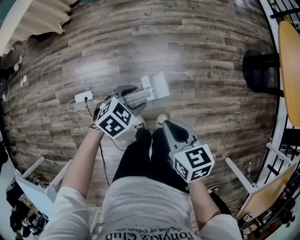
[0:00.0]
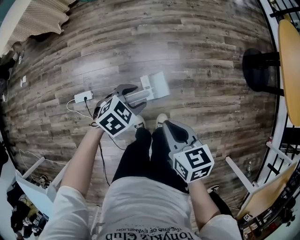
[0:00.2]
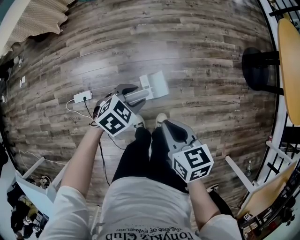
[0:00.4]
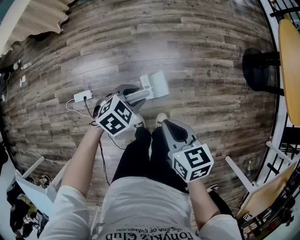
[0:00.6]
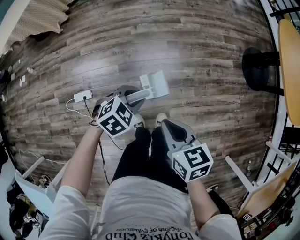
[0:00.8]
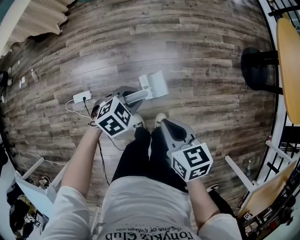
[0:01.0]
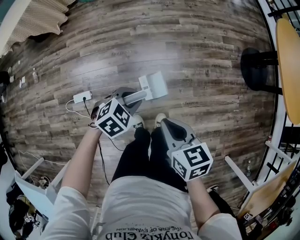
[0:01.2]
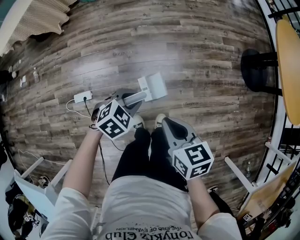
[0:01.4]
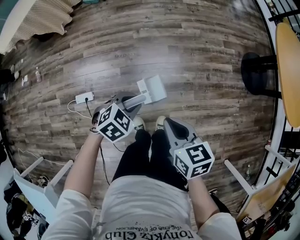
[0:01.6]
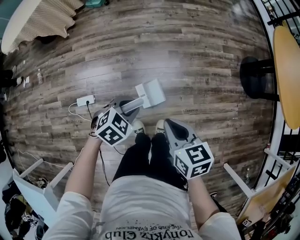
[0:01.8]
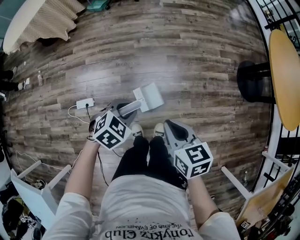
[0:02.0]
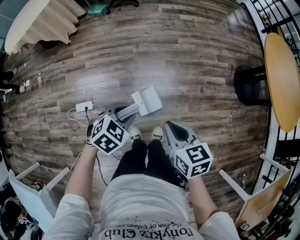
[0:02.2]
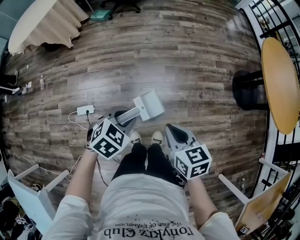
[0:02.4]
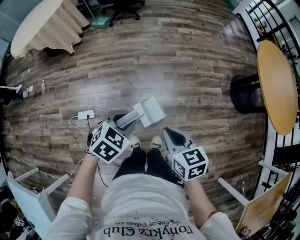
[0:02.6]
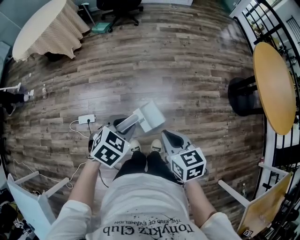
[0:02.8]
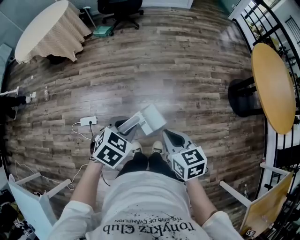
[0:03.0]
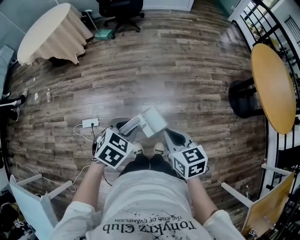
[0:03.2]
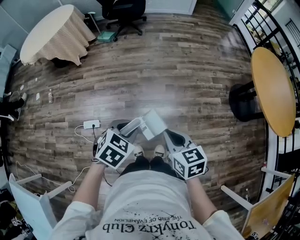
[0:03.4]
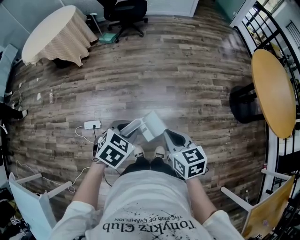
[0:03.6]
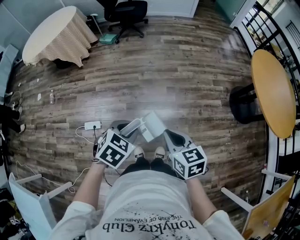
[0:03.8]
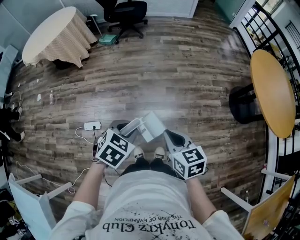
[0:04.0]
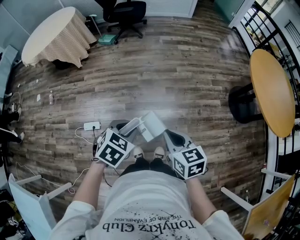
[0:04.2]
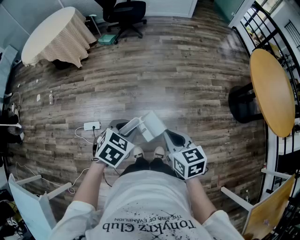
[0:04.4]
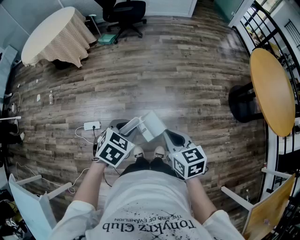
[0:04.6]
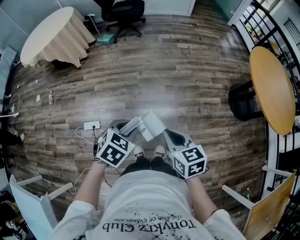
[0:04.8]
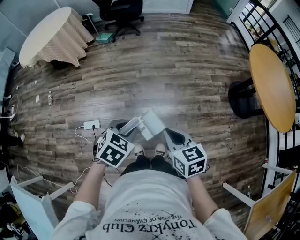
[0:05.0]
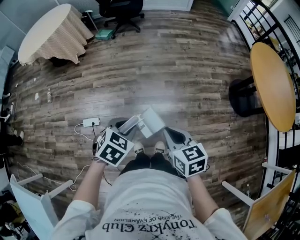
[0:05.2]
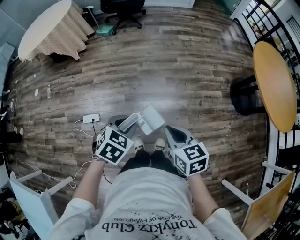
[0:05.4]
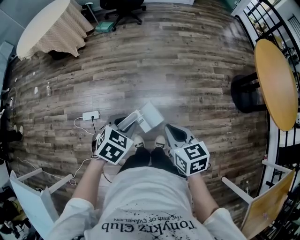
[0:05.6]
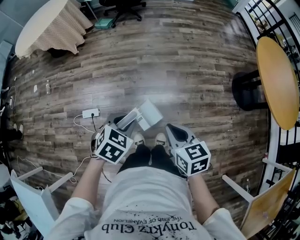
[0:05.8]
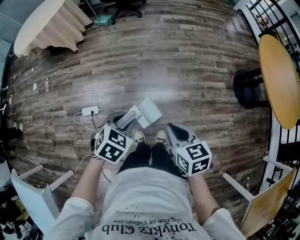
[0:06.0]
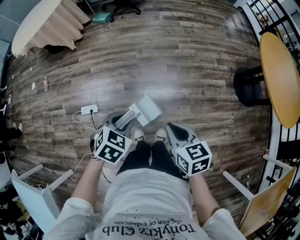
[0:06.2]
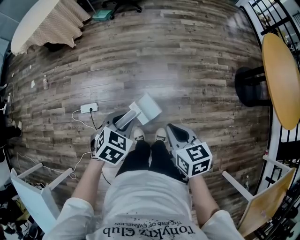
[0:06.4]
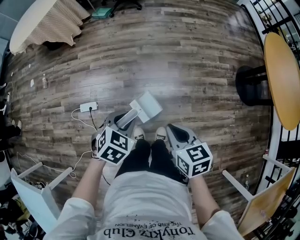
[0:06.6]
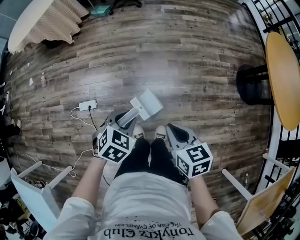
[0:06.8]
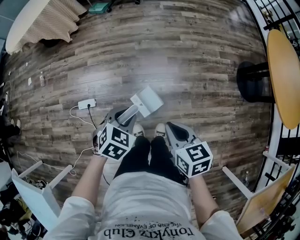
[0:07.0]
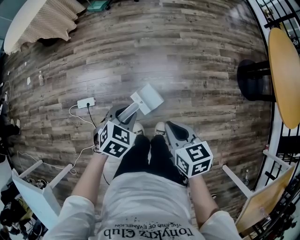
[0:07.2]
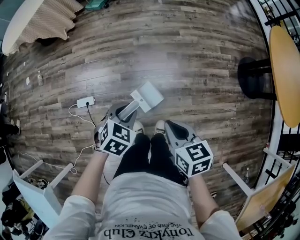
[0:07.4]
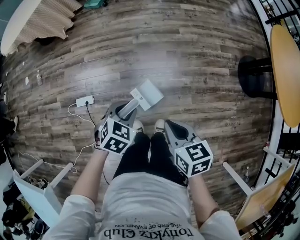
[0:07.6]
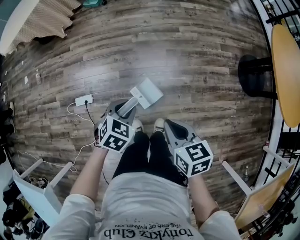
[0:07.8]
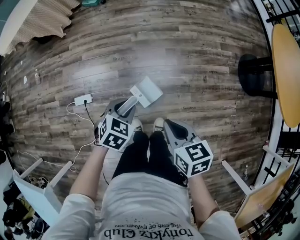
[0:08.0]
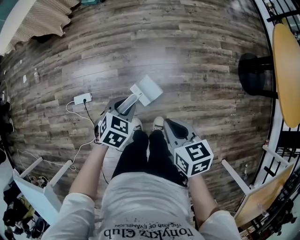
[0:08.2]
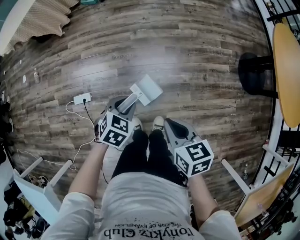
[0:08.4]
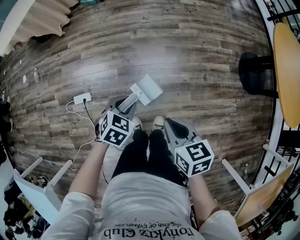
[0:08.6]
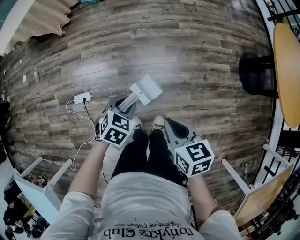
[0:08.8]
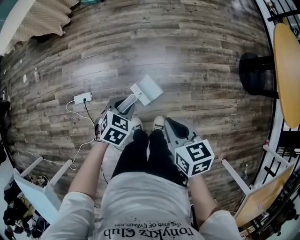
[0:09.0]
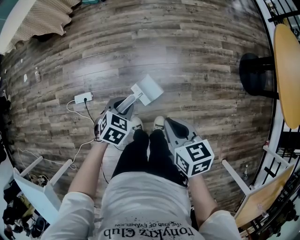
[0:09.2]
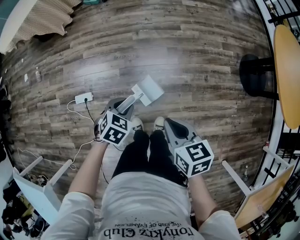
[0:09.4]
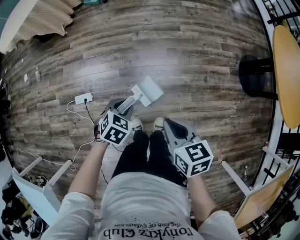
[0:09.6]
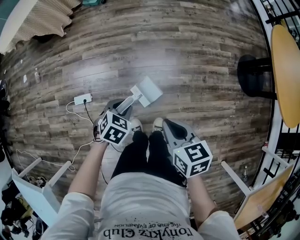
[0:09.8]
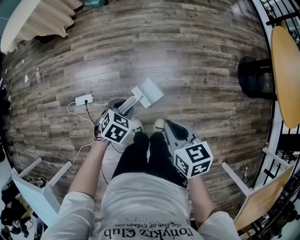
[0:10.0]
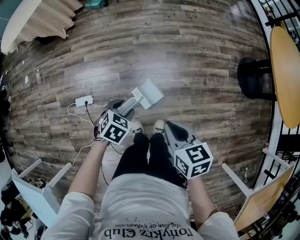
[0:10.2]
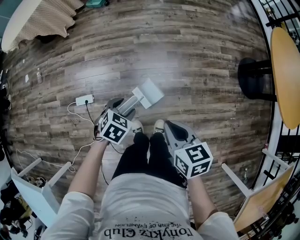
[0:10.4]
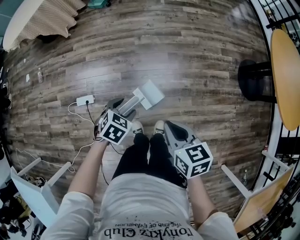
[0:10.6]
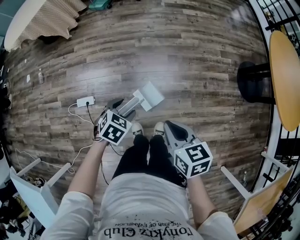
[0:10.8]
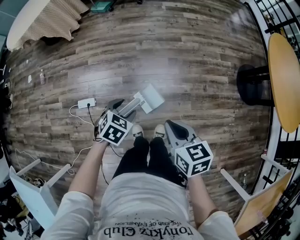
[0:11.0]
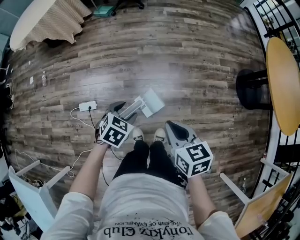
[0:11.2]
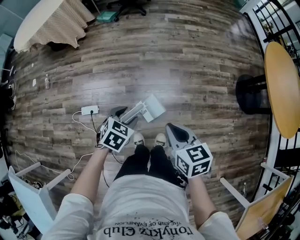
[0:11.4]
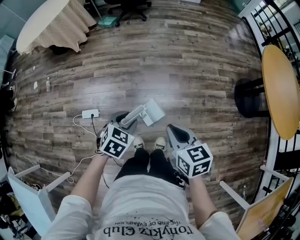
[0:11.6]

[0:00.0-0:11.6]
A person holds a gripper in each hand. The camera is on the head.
0:00.0 to 0:01.4: The left gripper closes up.
0:01.4 to 0:02.8: The left gripper travels upward by approximately 15 cm, while the right gripper shifts roughly 10 cm upward.
0:02.8 to 0:05.8: There are only small adjustments of the grippers.
0:05.8 to 0:07.2: The right gripper heads downward, covering about 5 cm. Meanwhile the left gripper travels downward and forward by some 10 cm.
0:07.2 to 0:08.8: The left gripper is displaced downward by about 5 cm.
0:08.8 to 0:10.2: The left gripper opens its fingers.
0:10.2 to 0:11.6: The left gripper is displaced upward by roughly 10 cm; the right gripper goes roughly 5 cm upward.

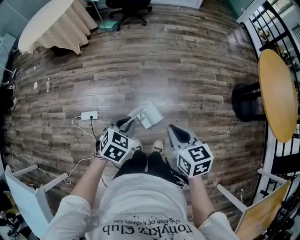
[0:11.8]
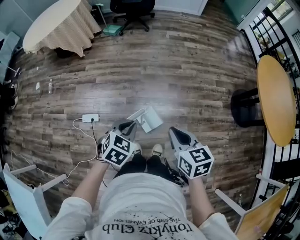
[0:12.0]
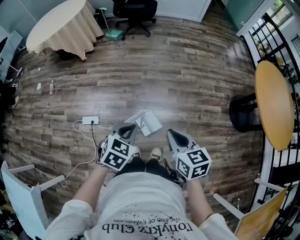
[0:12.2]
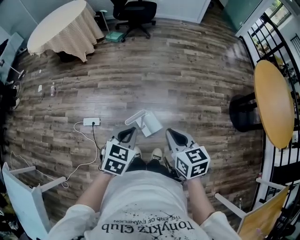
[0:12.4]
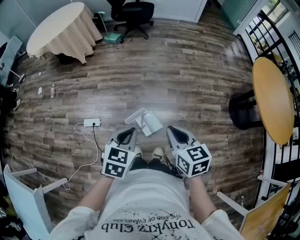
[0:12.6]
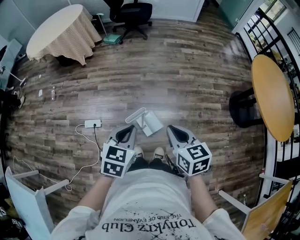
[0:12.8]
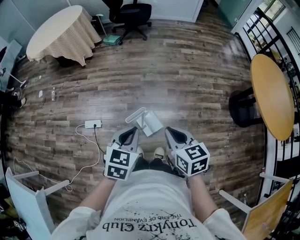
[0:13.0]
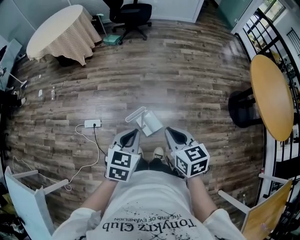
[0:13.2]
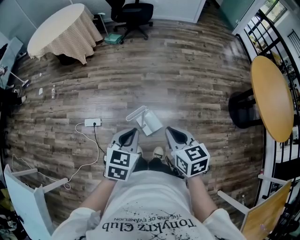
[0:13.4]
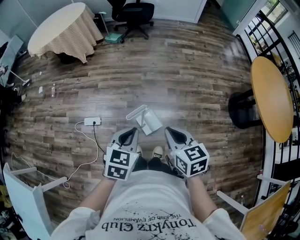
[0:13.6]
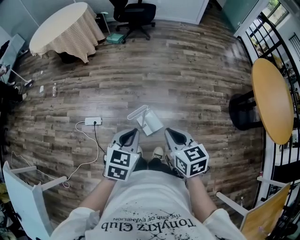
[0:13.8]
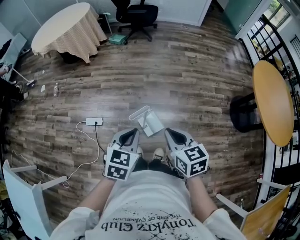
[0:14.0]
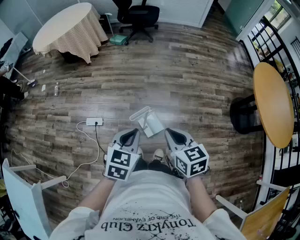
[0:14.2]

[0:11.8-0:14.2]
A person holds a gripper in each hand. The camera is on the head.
0:11.8 to 0:13.0: The left gripper goes roughly 15 cm upward and backward, and swivels about 20 degrees, while the right gripper changes place by approximately 5 cm.
0:13.0 to 0:14.2: There are only small adjustments of the grippers.

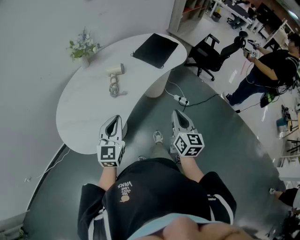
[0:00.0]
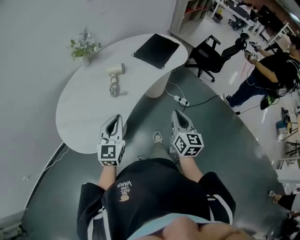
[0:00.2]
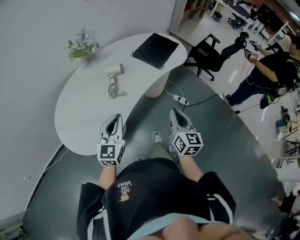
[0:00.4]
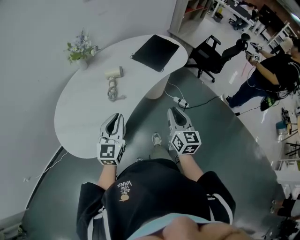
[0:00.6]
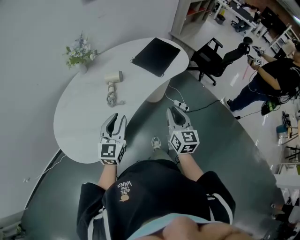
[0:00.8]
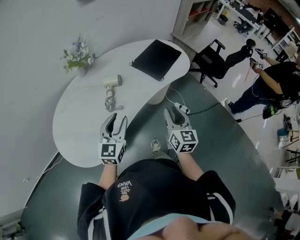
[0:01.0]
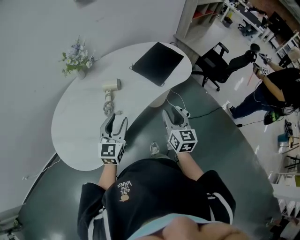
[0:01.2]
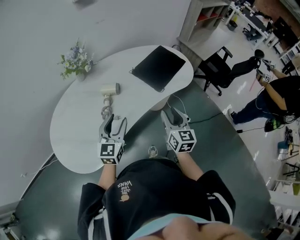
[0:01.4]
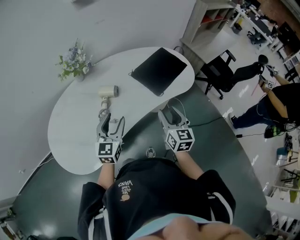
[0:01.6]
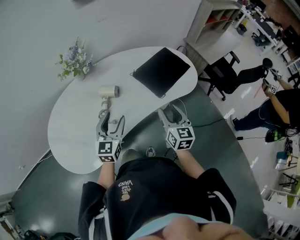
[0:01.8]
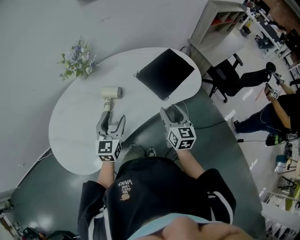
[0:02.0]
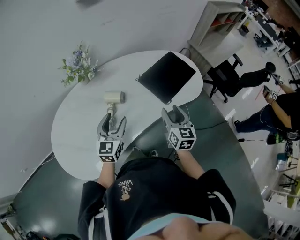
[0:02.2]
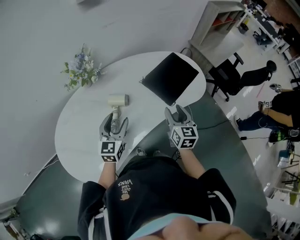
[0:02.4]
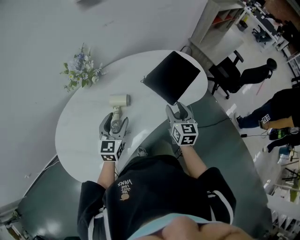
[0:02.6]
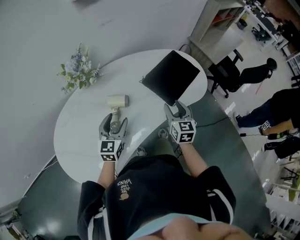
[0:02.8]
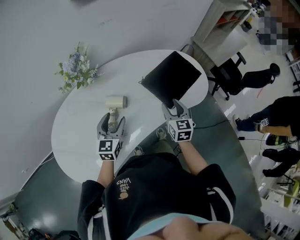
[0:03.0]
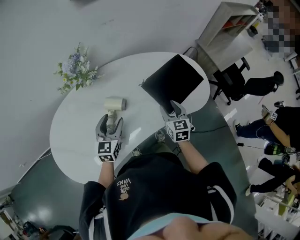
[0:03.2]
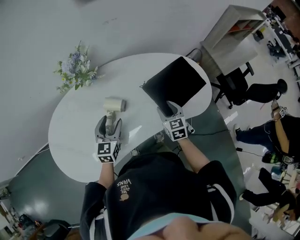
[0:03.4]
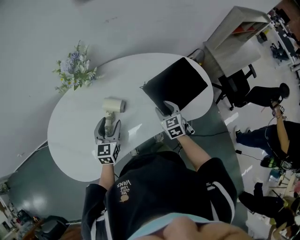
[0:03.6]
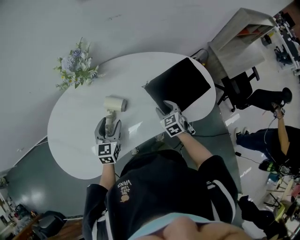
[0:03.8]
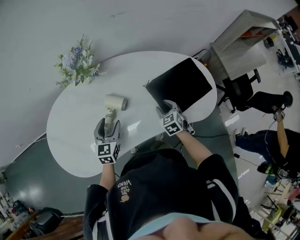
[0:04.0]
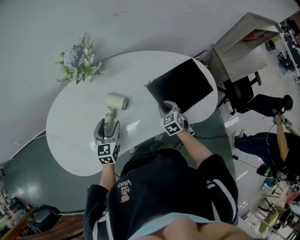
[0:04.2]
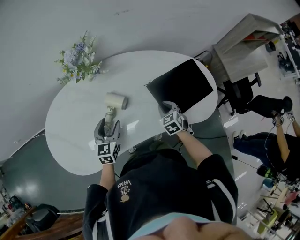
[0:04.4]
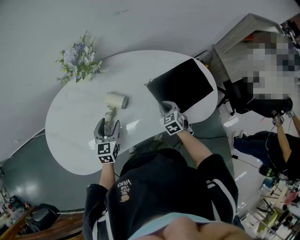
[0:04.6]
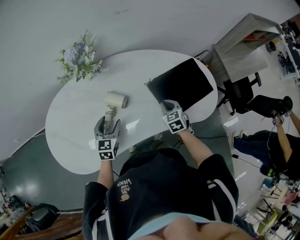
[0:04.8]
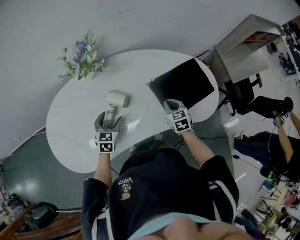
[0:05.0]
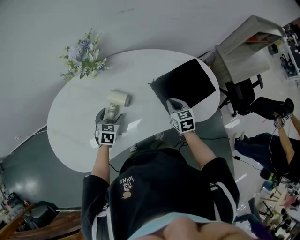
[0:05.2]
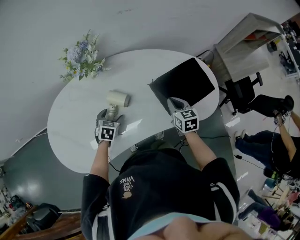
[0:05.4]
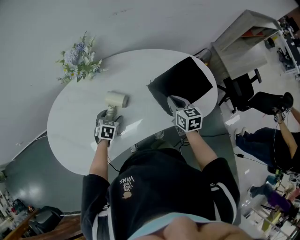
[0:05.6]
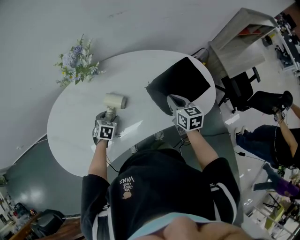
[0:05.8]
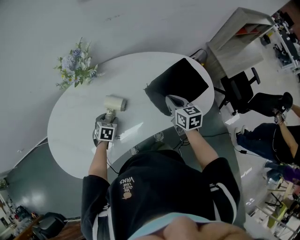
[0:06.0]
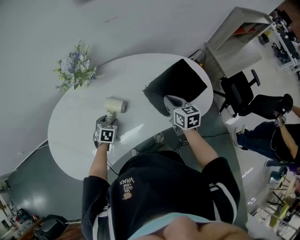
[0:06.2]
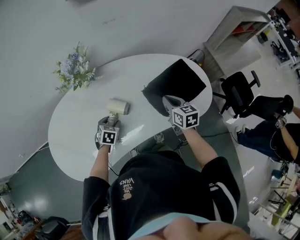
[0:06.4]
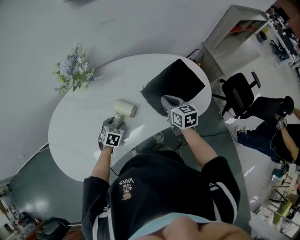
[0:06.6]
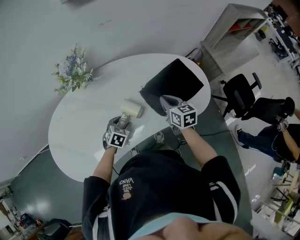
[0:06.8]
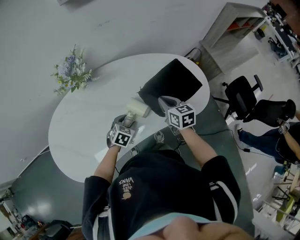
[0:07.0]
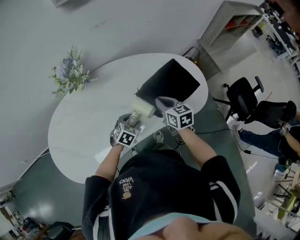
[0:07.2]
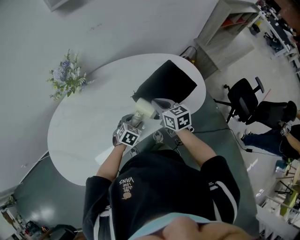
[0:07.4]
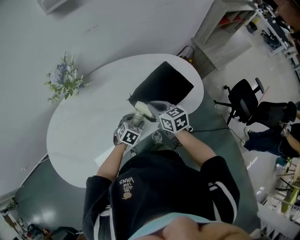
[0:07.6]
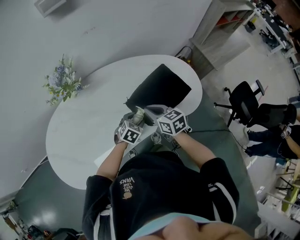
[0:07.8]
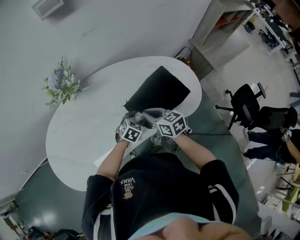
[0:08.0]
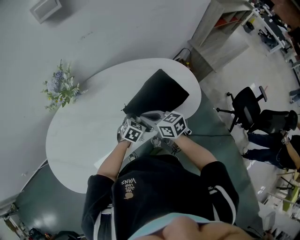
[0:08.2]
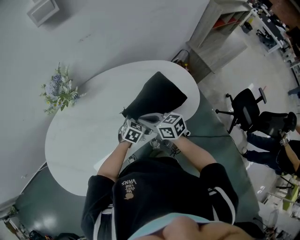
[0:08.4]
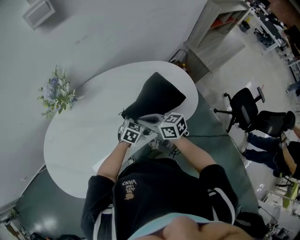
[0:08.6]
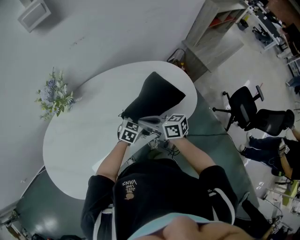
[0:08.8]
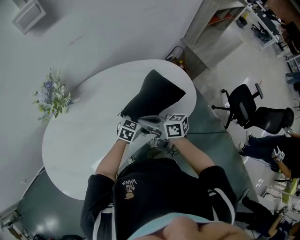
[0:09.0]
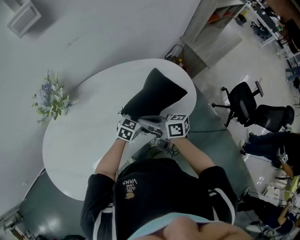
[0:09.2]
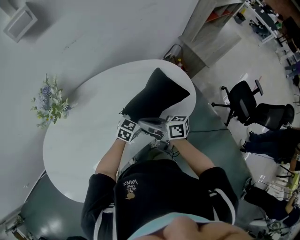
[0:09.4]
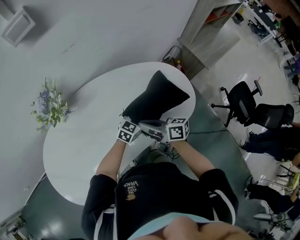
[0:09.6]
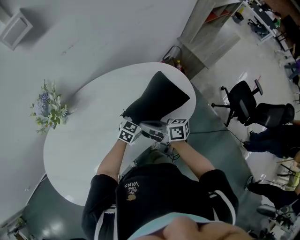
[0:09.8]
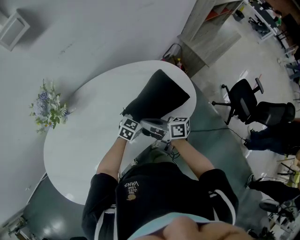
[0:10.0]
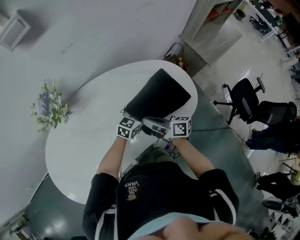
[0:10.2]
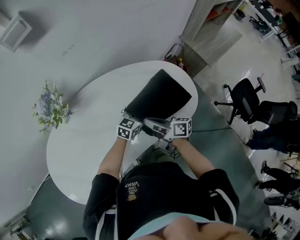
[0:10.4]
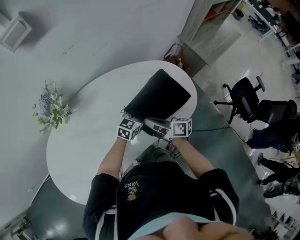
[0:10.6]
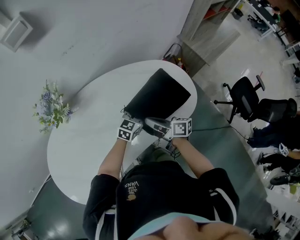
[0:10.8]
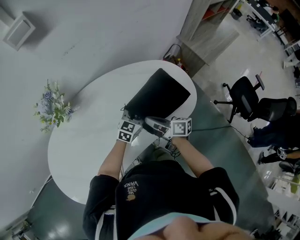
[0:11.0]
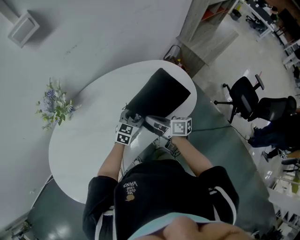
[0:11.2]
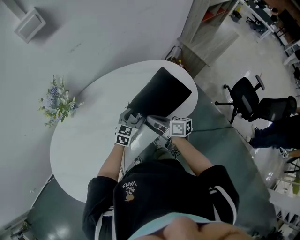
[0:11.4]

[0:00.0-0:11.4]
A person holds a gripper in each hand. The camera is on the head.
0:00.0 to 0:01.4: The two grippers go approximately 20 cm forward. The left gripper opens up, while the right gripper opens its fingers.
0:01.4 to 0:02.8: The right gripper heads forward, covering approximately 20 cm. The left gripper travels forward and to the left by about 15 cm.
0:02.8 to 0:04.2: The right gripper shifts approximately 20 cm downward and forward, and turns by some 50 degrees; the left gripper goes approximately 5 cm downward, and swivels roughly 30 degrees.
0:04.2 to 0:05.6: The left gripper heads downward, covering some 10 cm, and changes its angle by roughly 30 degrees. Meanwhile the right gripper travels upward by approximately 10 cm, and changes its angle by about 30 degrees.
0:05.6 to 0:07.2: The left gripper heads to the right, covering about 15 cm, and swivels about 20 degrees.
0:07.2 to 0:08.6: The left gripper goes about 15 cm to the right and forward, while the right gripper moves roughly 5 cm, and turns by approximately 30 degrees.
0:08.6 to 0:10.0: The right gripper ends up some 5 cm from where it was, and turns by roughly 30 degrees. Meanwhile the left gripper heads to the right, covering approximately 5 cm.
0:10.0 to 0:11.4: The left gripper is displaced to the left by about 5 cm.
